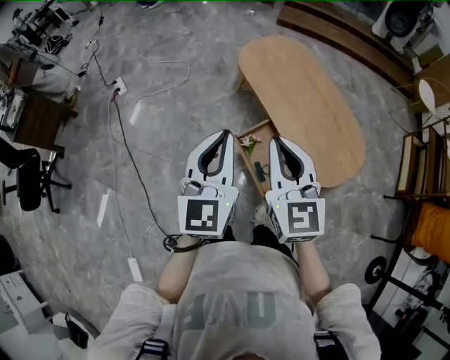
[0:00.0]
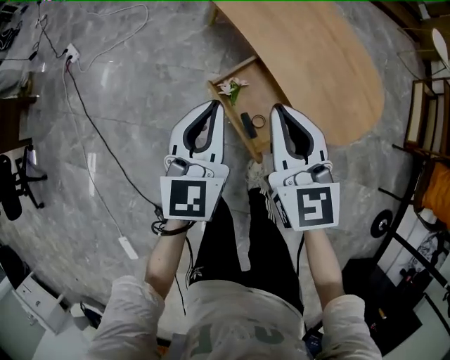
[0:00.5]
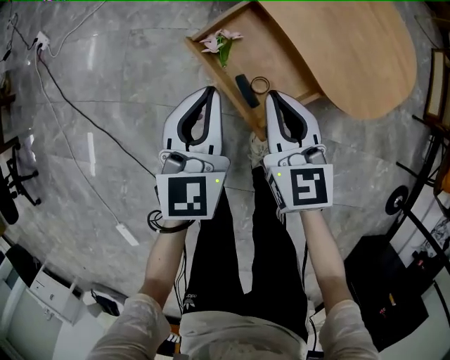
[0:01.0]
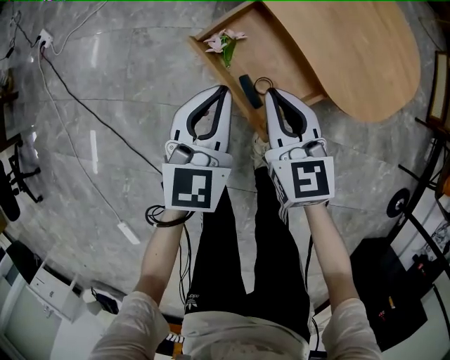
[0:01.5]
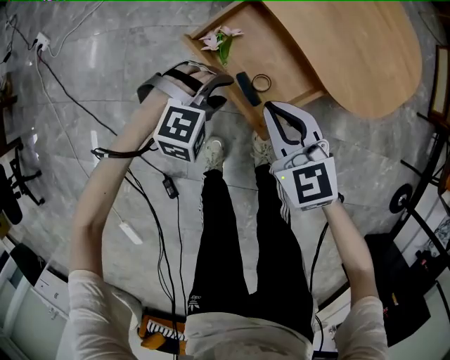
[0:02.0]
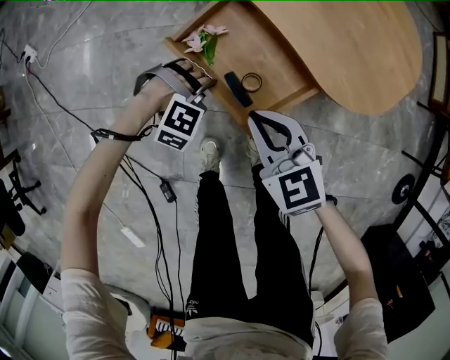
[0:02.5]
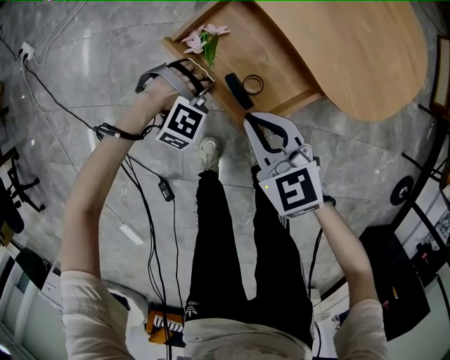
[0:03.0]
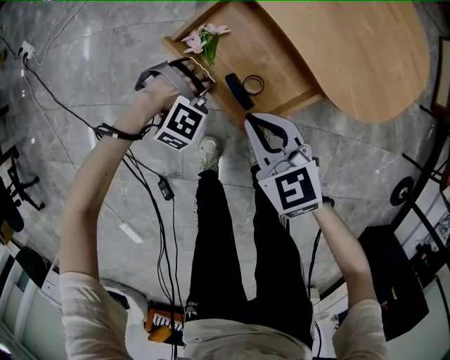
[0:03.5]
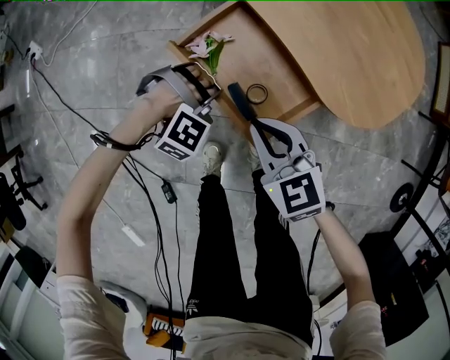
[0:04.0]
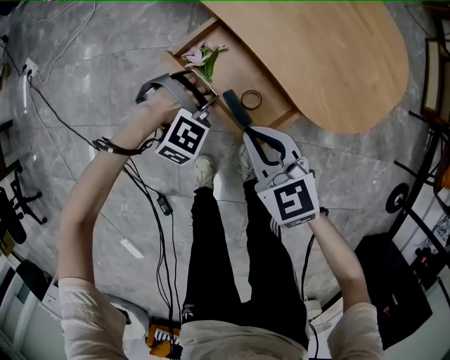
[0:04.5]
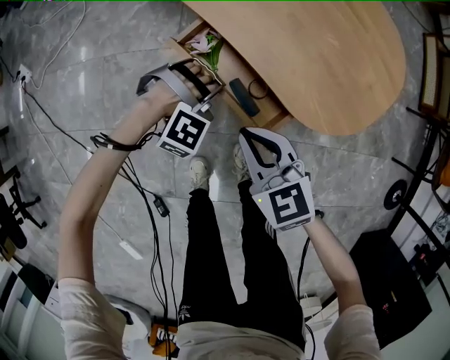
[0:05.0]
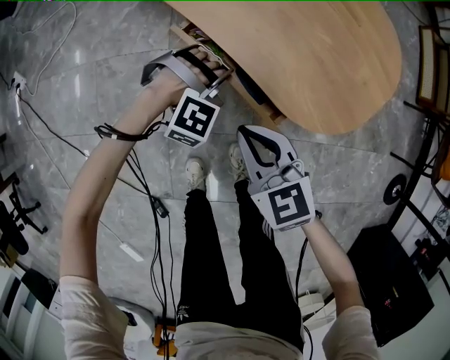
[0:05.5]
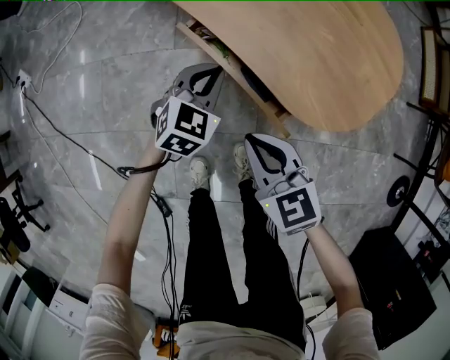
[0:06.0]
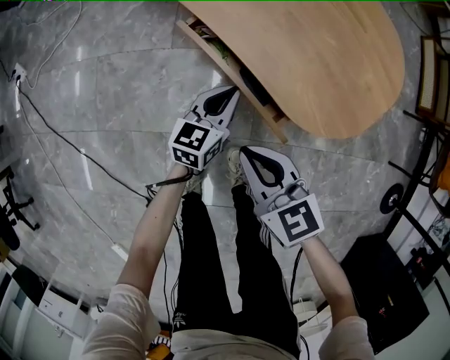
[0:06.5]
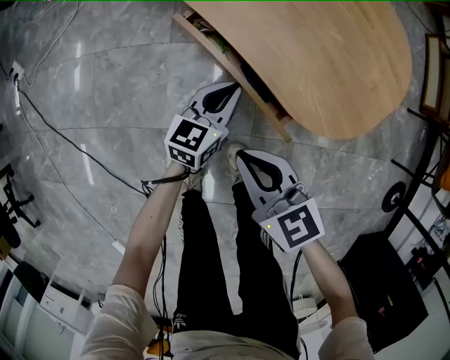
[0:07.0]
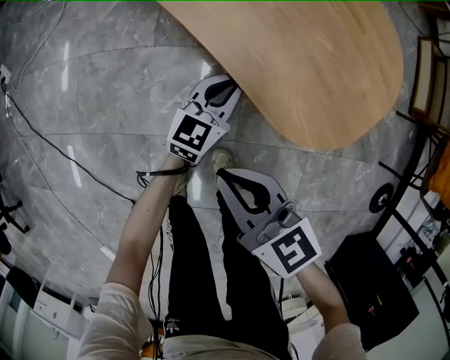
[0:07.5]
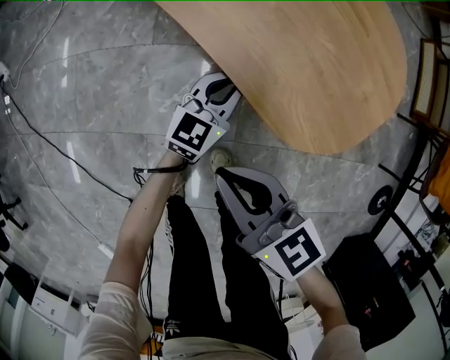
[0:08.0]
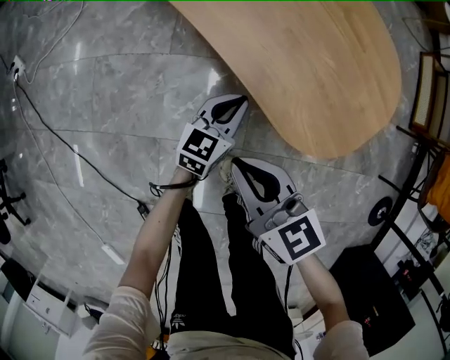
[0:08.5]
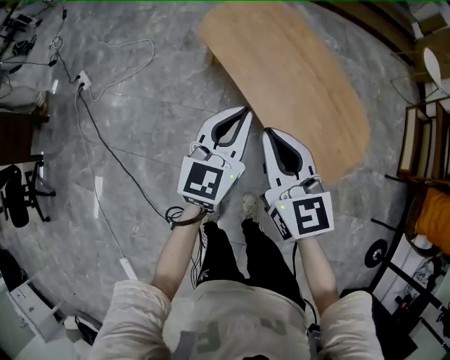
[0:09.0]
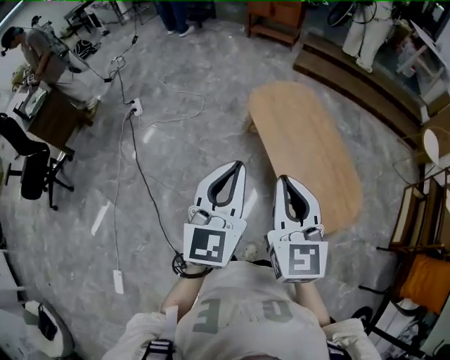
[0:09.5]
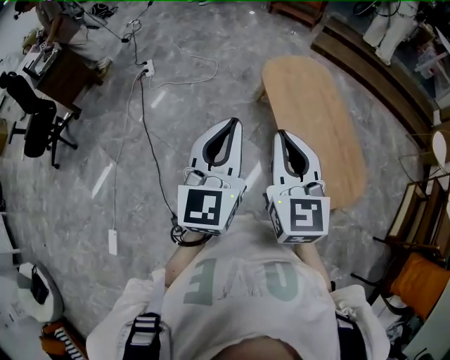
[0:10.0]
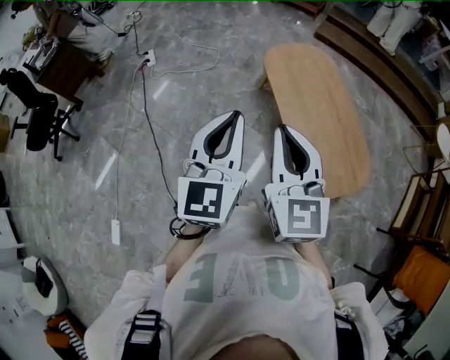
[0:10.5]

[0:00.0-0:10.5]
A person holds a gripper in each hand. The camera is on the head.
0:00.0 to 0:02.0: The two grippers go approximately 50 cm downward. The left gripper tips its fingers downward by about 60 degrees, and opens its fingers. Meanwhile the right gripper rotates about 30 degrees.
0:02.0 to 0:04.0: The left gripper is displaced downward by about 5 cm, swivels about 30 degrees, and closes its fingers.
0:04.0 to 0:06.5: The left gripper ends up some 15 cm from where it was, and twists approximately 110 degrees counterclockwise, seen from behind, while the right gripper changes place by about 5 cm.
0:08.5 to 0:10.5: The grippers both shift upward by some 60 cm. The left gripper swivels roughly 60 degrees, while the right gripper swivels some 40 degrees.

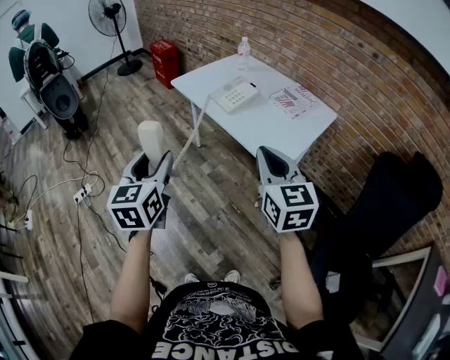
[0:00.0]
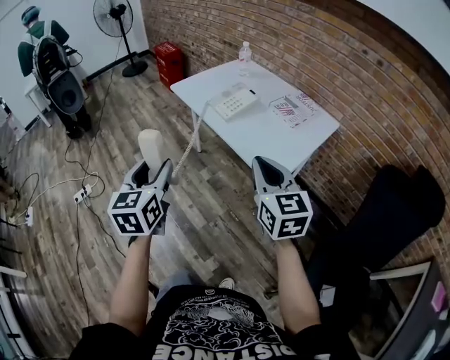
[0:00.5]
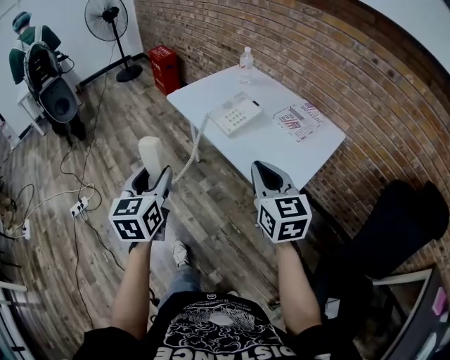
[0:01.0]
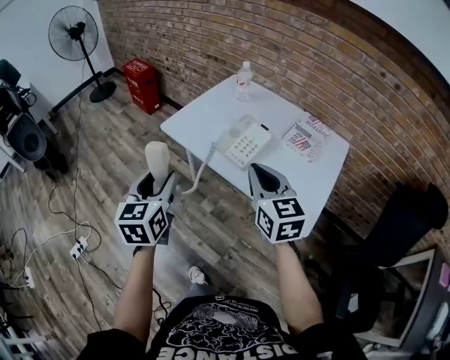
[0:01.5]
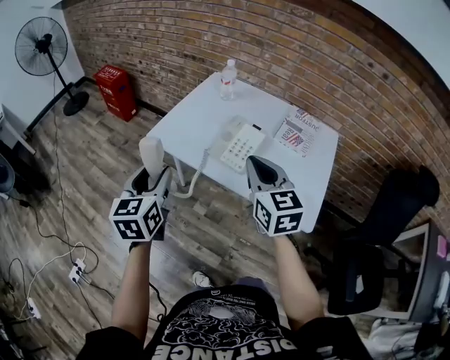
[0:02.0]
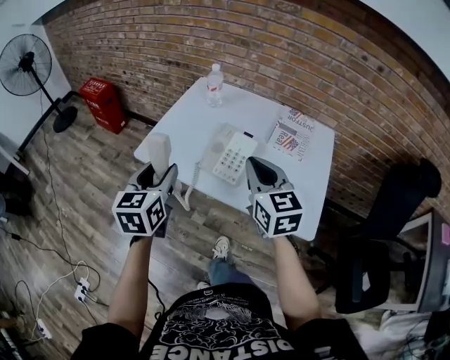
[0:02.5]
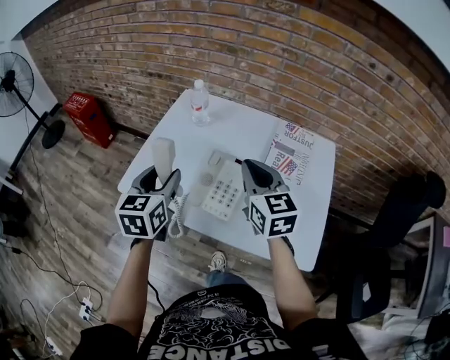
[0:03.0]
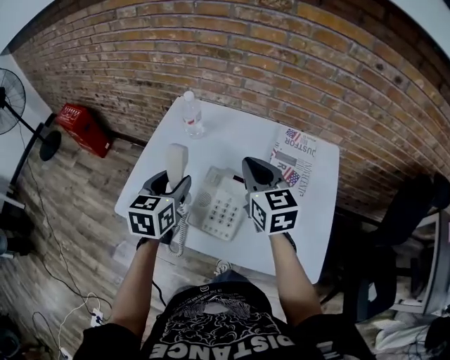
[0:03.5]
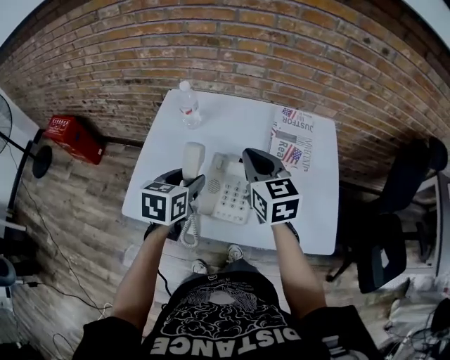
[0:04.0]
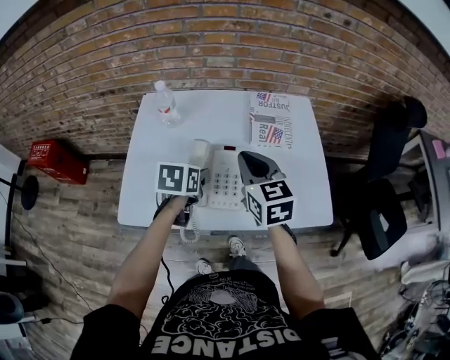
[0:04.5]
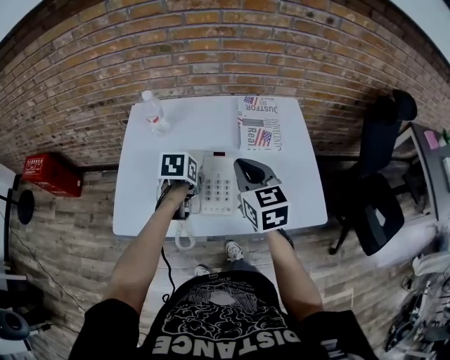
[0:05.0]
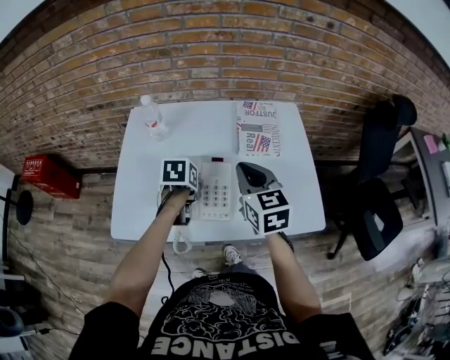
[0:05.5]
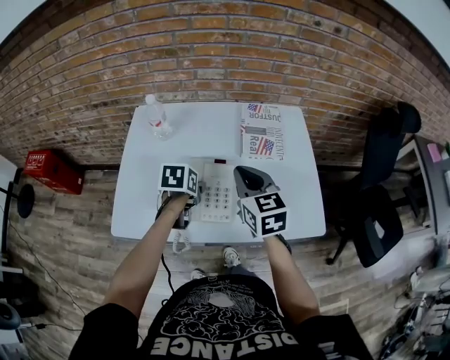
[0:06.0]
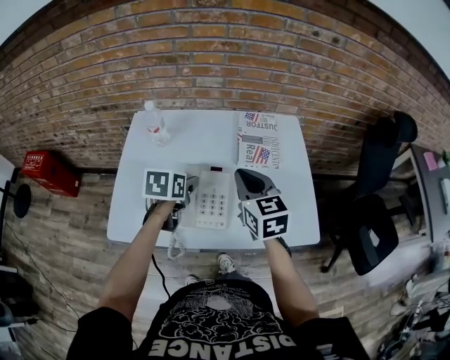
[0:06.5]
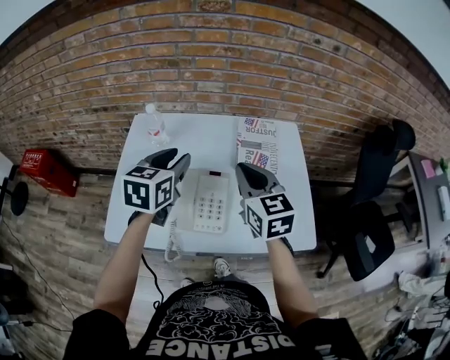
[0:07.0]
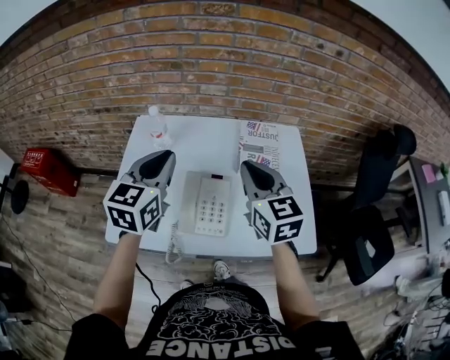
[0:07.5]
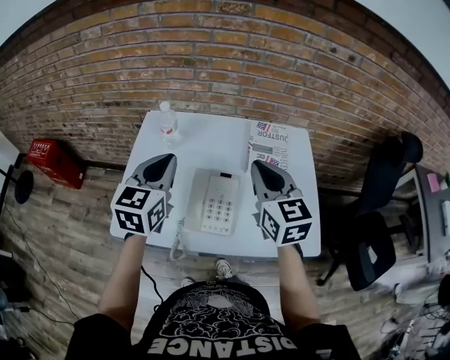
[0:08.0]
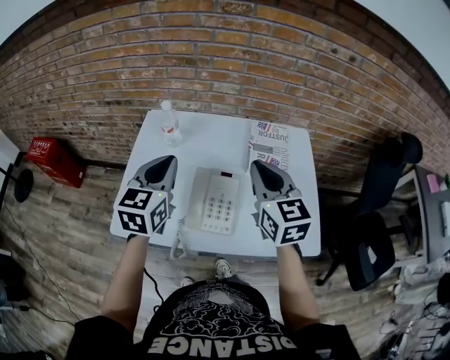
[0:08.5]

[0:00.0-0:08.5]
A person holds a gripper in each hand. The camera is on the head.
0:00.0 to 0:02.0: Both grippers travel together forward, roughly 35 cm.
0:02.0 to 0:04.0: The left gripper shifts by about 35 cm, and rotates some 40 degrees. The right gripper moves approximately 25 cm.
0:04.0 to 0:06.5: The right gripper moves to the right, about 5 cm, while the left gripper heads forward, covering roughly 5 cm.
0:06.5 to 0:08.5: The left gripper heads upward, covering roughly 15 cm, points its fingers about 30 degrees further upward, and closes. Meanwhile the right gripper is displaced upward by some 10 cm.

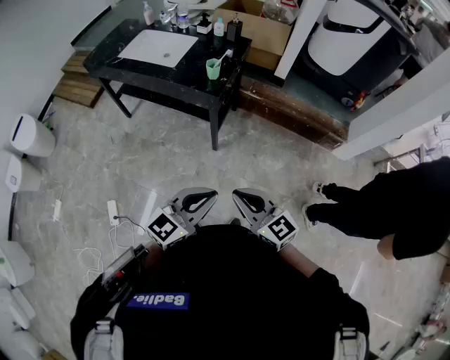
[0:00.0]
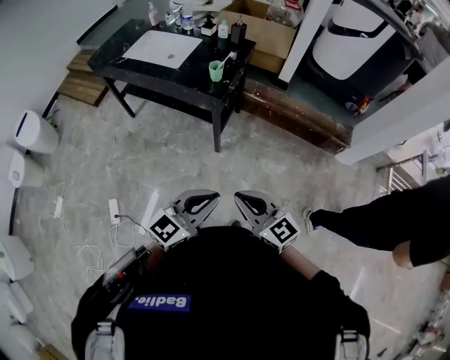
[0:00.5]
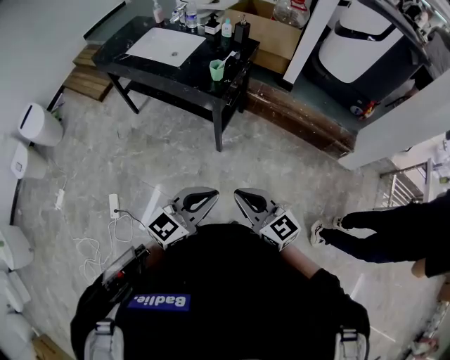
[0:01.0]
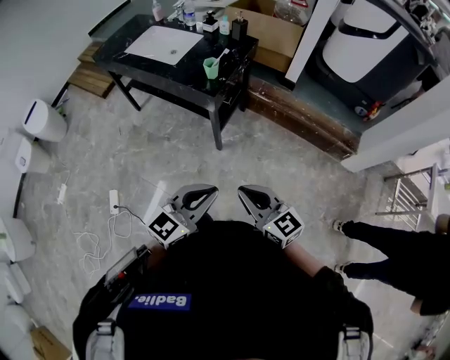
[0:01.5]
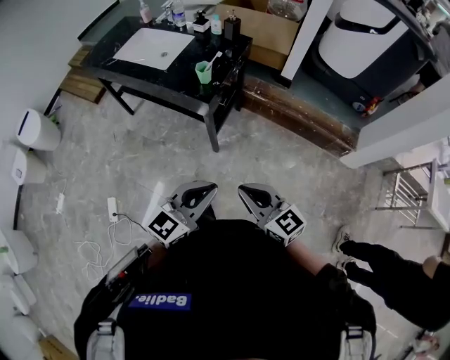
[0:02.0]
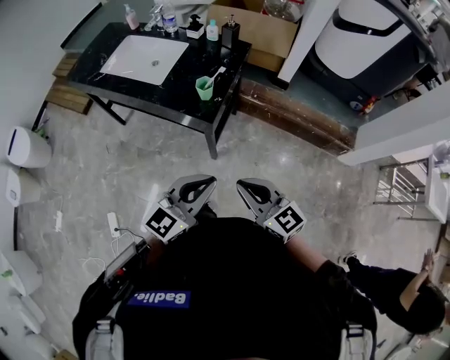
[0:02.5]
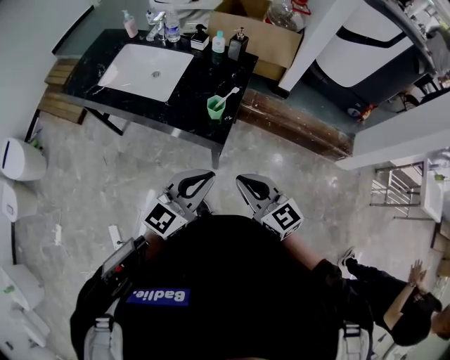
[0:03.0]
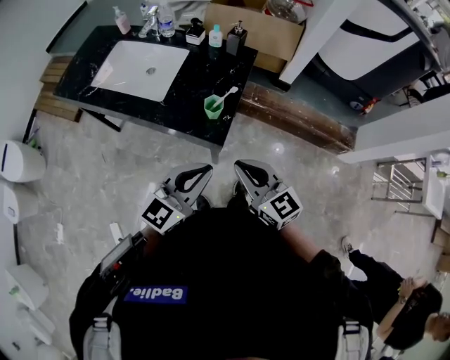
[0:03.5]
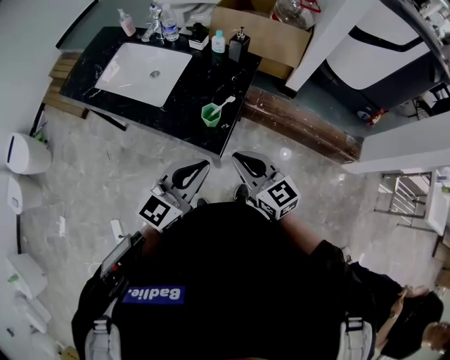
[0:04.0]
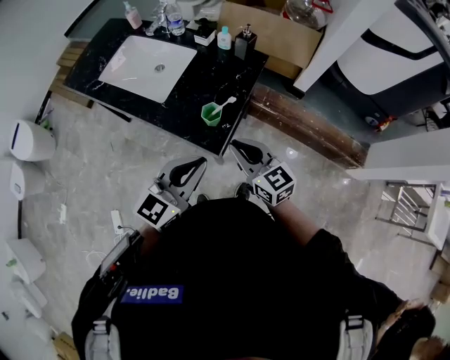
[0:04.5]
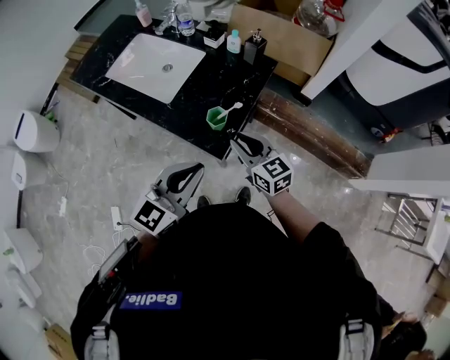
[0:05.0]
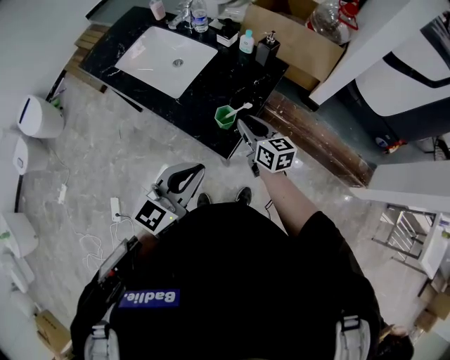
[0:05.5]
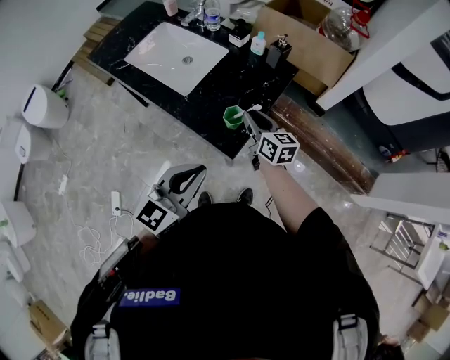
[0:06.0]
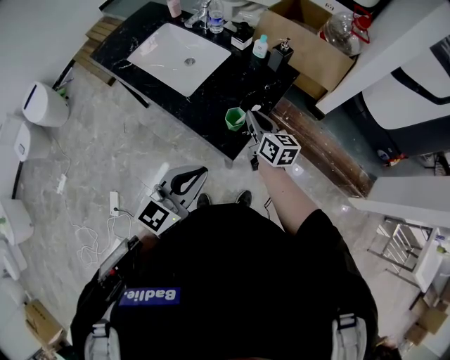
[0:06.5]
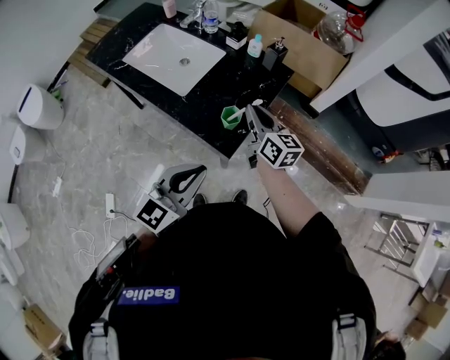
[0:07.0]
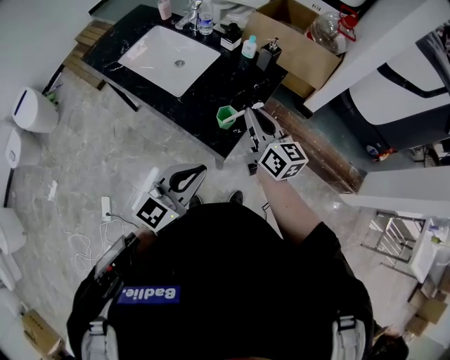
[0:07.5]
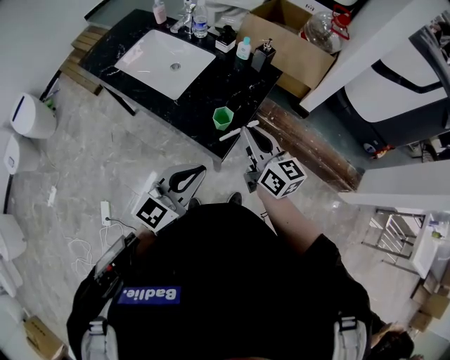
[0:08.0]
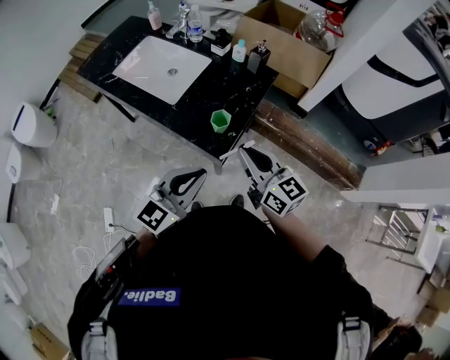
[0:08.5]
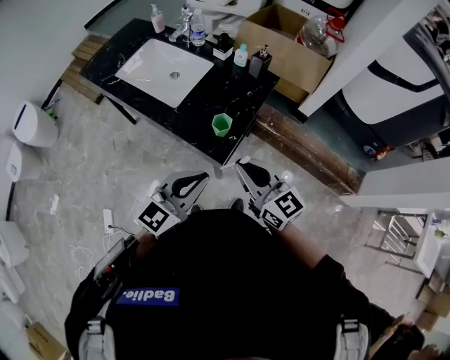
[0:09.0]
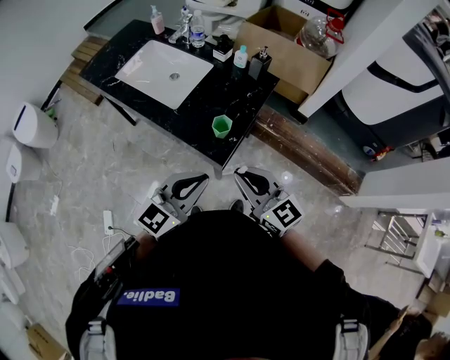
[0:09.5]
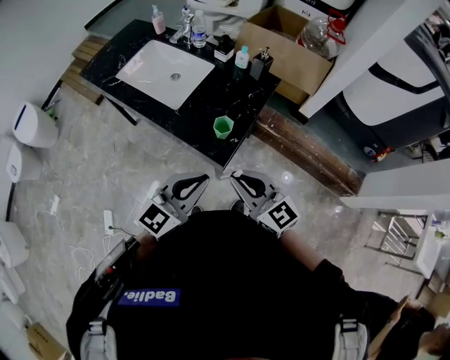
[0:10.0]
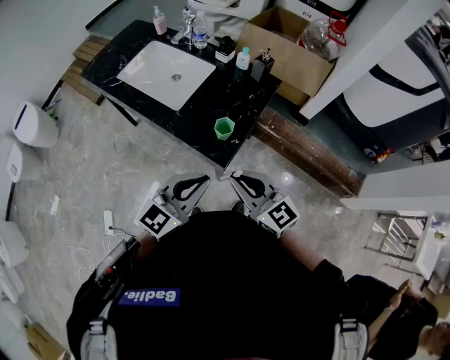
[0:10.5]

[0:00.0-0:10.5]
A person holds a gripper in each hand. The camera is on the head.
0:00.0 to 0:02.0: The left gripper is displaced forward and to the right by approximately 10 cm, while the right gripper travels to the right and forward by some 10 cm.
0:02.0 to 0:04.0: Both grippers travel together forward, approximately 30 cm.
0:04.0 to 0:06.5: The right gripper heads forward and downward, covering approximately 20 cm, and changes its angle by roughly 20 degrees.
0:06.5 to 0:08.5: The right gripper moves backward and upward, approximately 20 cm.
0:08.5 to 0:10.5: The right gripper is displaced backward by approximately 5 cm.
